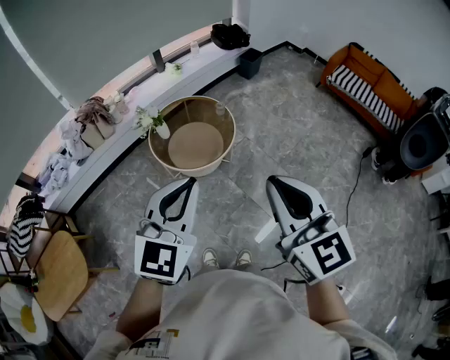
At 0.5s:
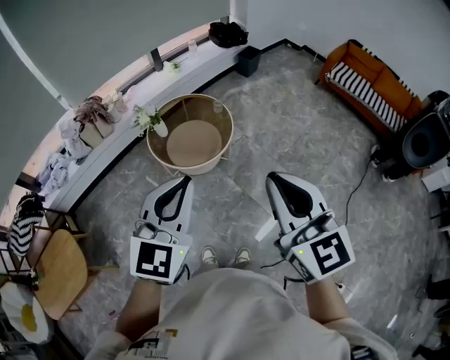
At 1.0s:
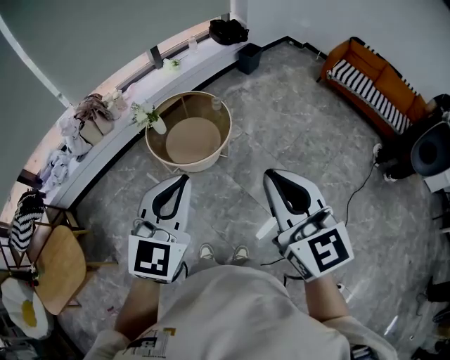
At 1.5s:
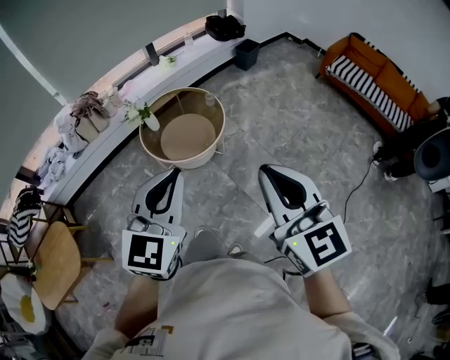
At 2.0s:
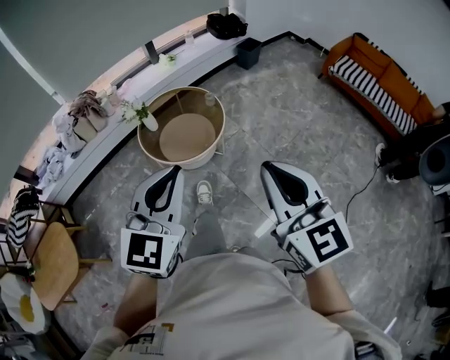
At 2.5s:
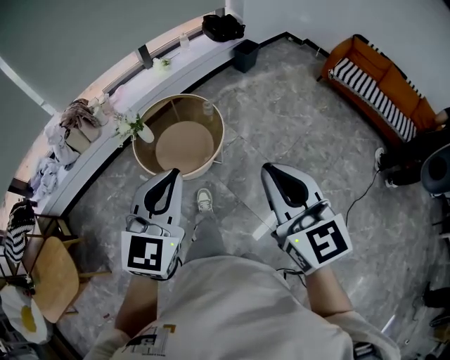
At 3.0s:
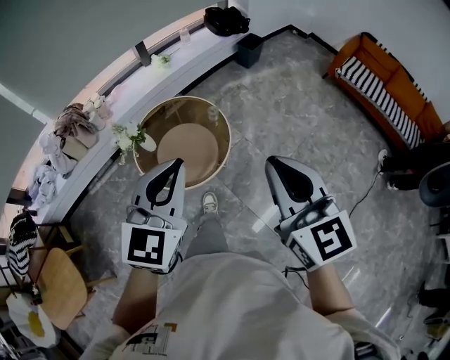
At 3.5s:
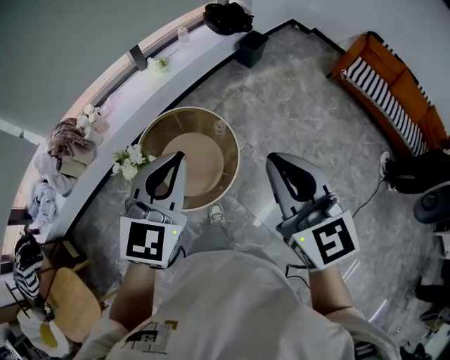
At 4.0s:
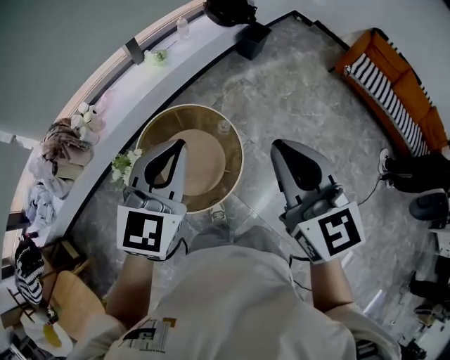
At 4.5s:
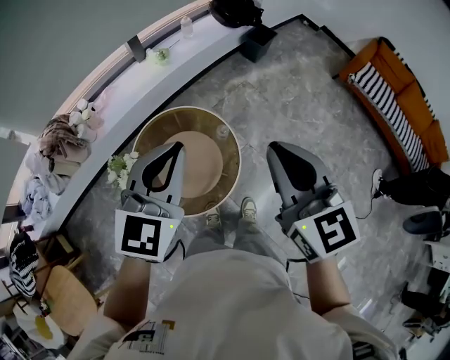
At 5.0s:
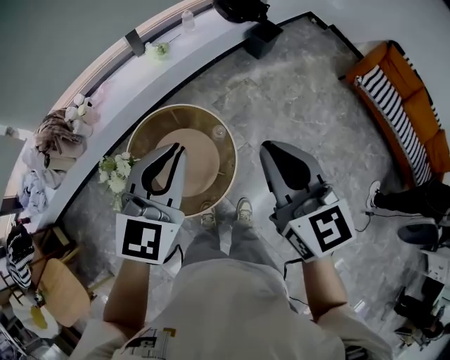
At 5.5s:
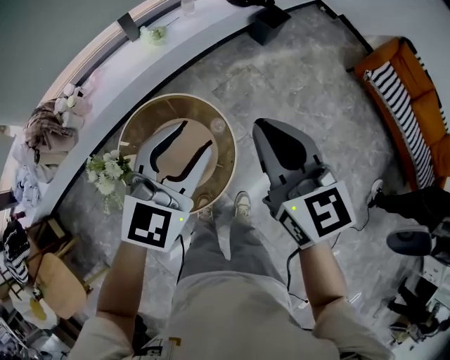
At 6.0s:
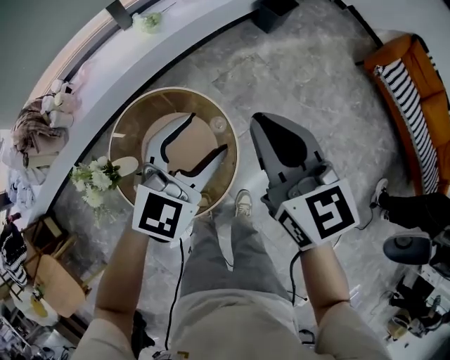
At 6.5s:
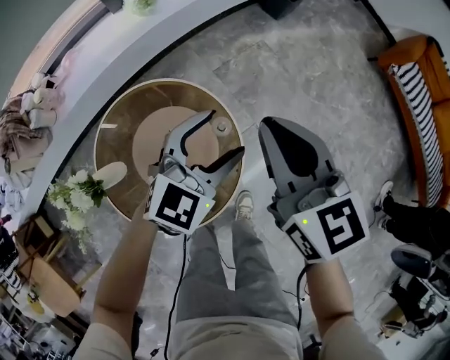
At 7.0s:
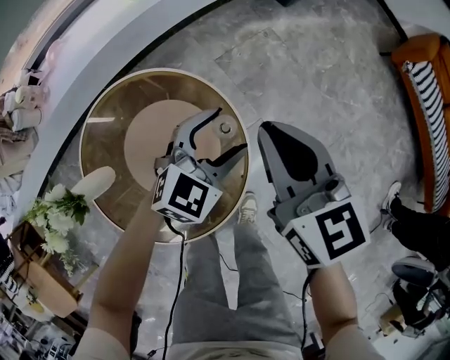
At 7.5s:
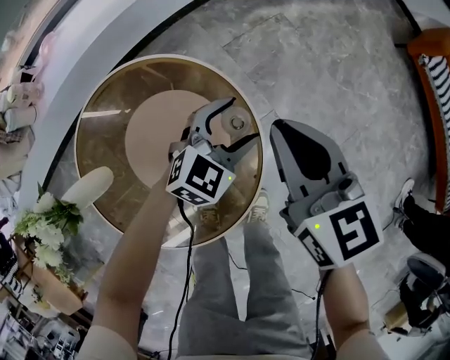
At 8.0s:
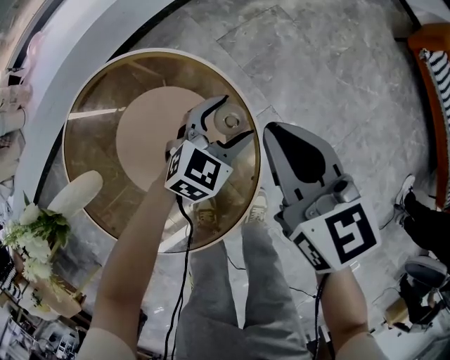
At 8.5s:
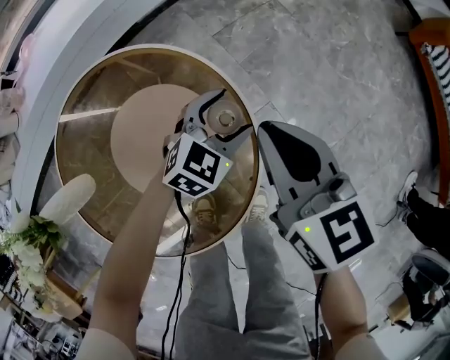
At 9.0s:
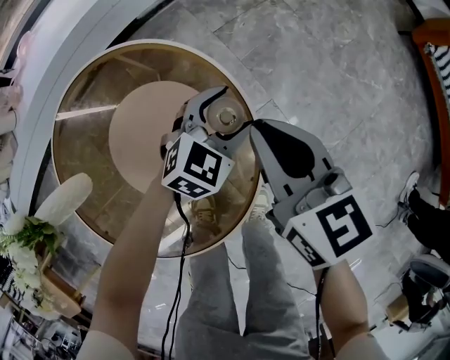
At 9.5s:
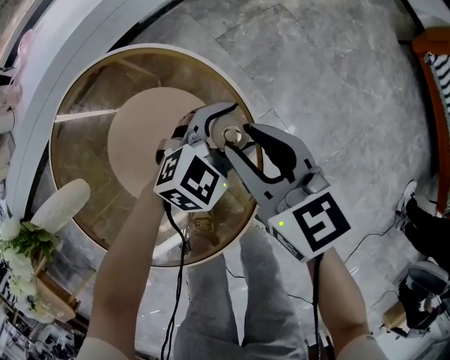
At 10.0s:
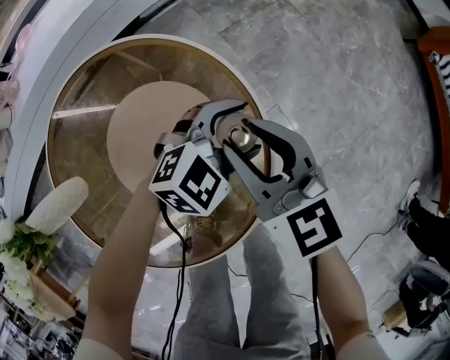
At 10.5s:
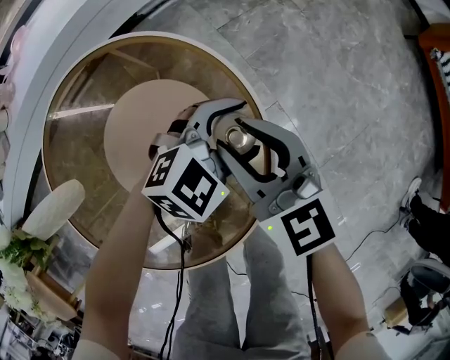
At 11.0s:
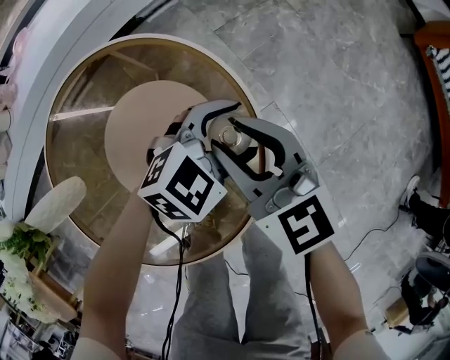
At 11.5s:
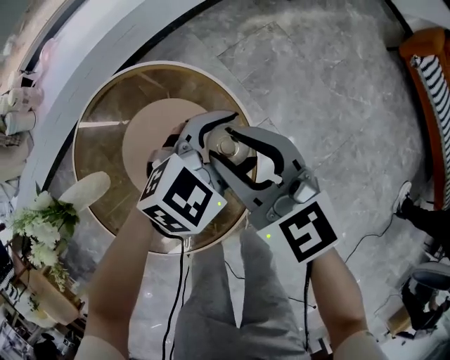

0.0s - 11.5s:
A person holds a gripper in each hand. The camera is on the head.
0.0s - 2.0s: The left gripper is displaced to the right by some 10 cm; the right gripper moves to the right and downward, approximately 10 cm.
2.0s - 4.0s: The pair of grippers is taken forward, roughly 50 cm.
4.0s - 6.0s: The right gripper travels forward and downward by roughly 30 cm. The left gripper shifts roughly 30 cm downward, forward and to the right, and opens its fingers.
6.0s - 7.5s: The grippers both shift downward by some 35 cm.
7.5s - 9.5s: The left gripper goes some 10 cm downward; the right gripper shifts roughly 15 cm downward, and opens its fingers.
9.5s - 11.5s: Both grippers travel together upward, some 15 cm.

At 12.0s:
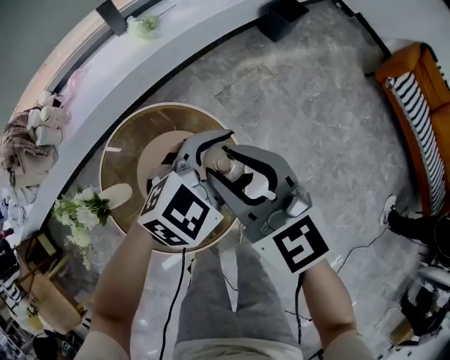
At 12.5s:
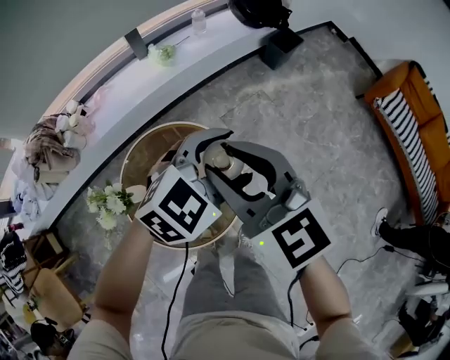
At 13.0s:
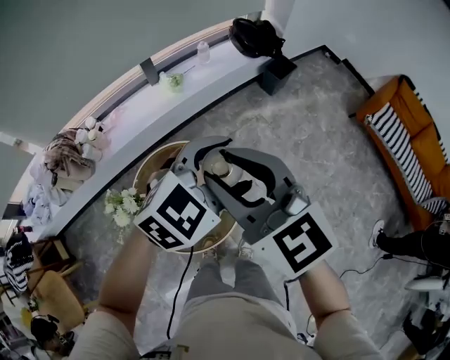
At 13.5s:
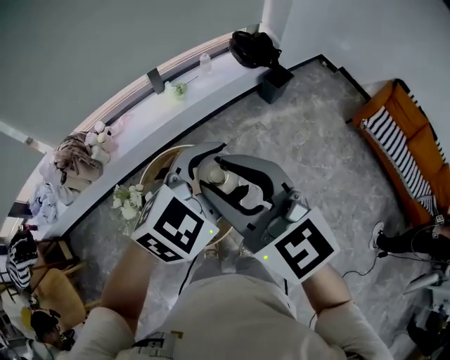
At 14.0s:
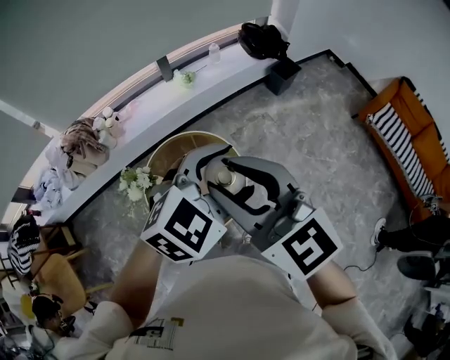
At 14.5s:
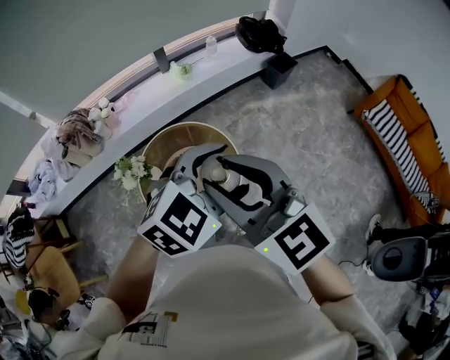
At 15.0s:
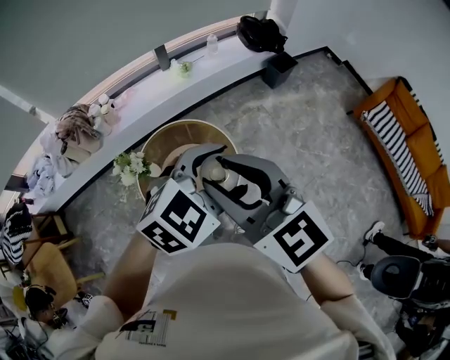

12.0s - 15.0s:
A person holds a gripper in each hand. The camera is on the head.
12.0s - 13.5s: Both grippers travel together upward, approximately 40 cm.
13.5s - 15.0s: The grippers both shift backward by approximately 10 cm.

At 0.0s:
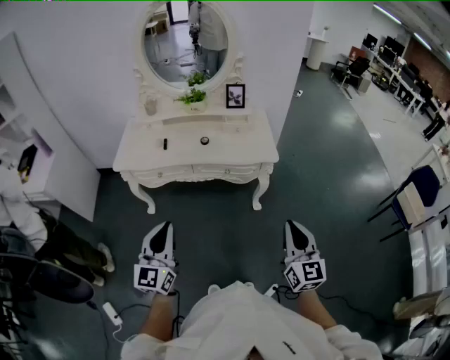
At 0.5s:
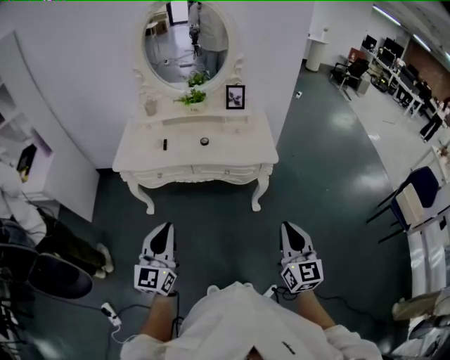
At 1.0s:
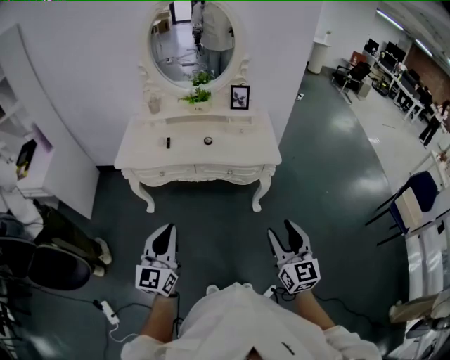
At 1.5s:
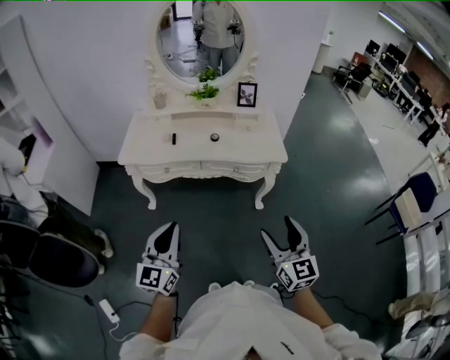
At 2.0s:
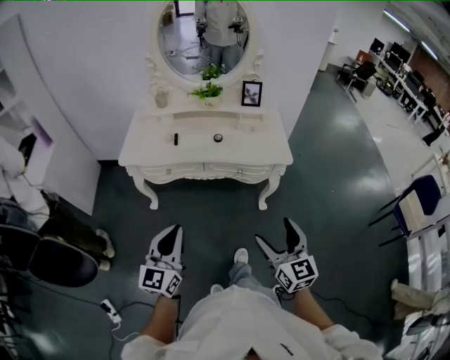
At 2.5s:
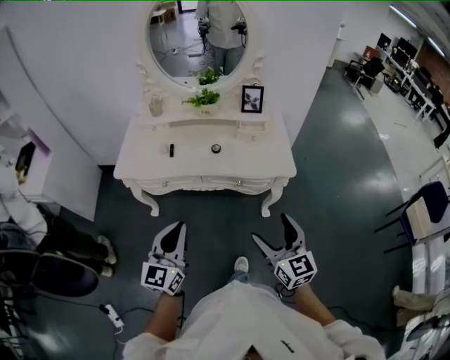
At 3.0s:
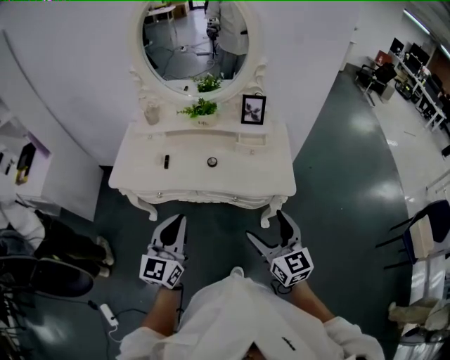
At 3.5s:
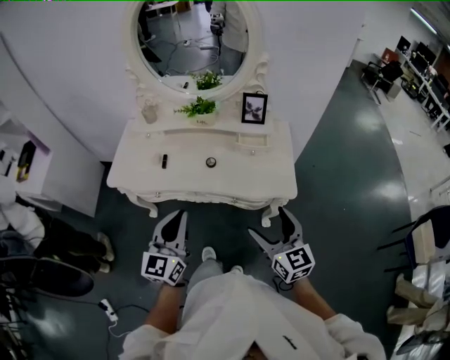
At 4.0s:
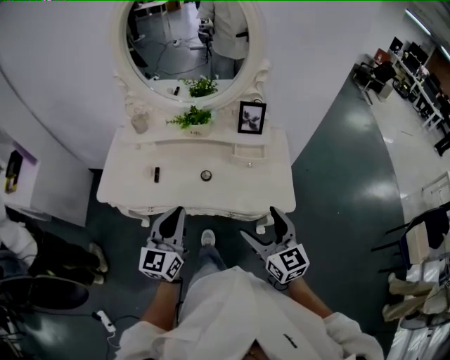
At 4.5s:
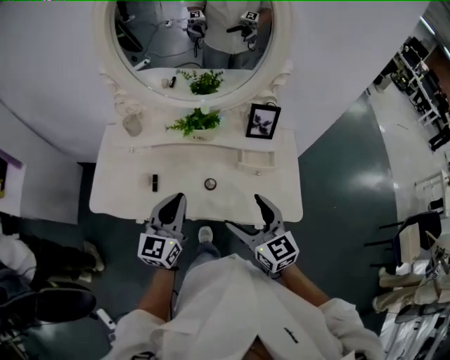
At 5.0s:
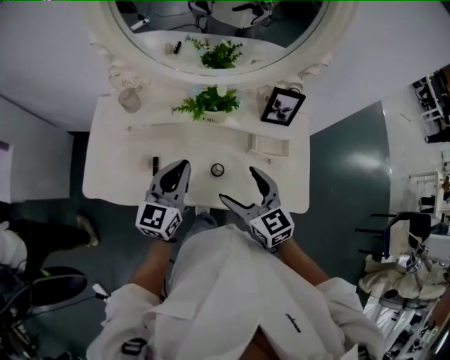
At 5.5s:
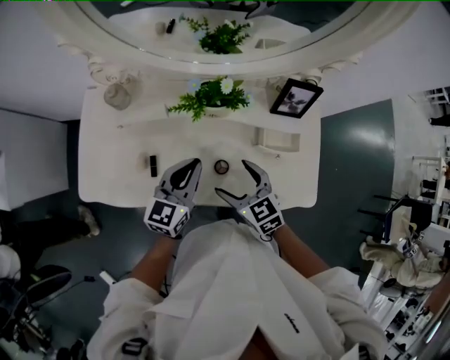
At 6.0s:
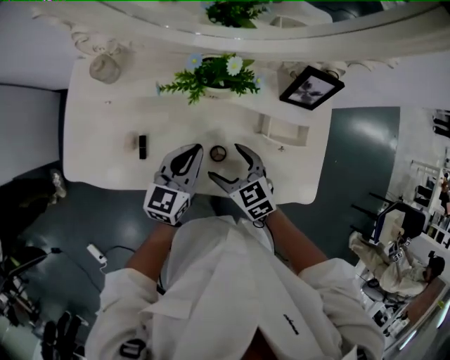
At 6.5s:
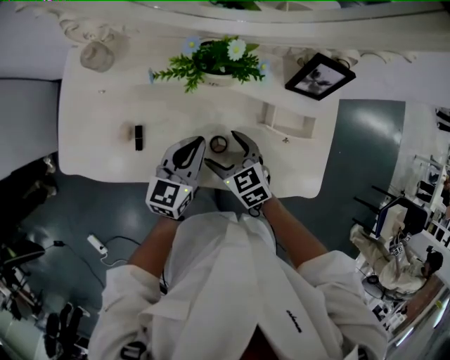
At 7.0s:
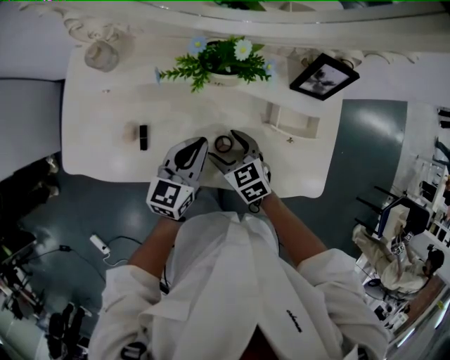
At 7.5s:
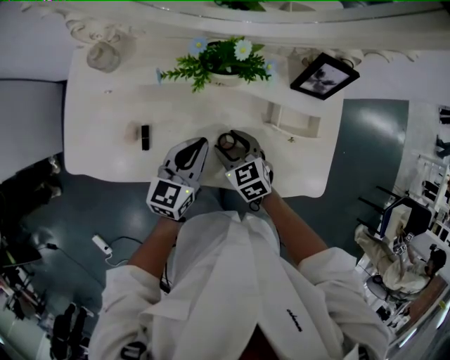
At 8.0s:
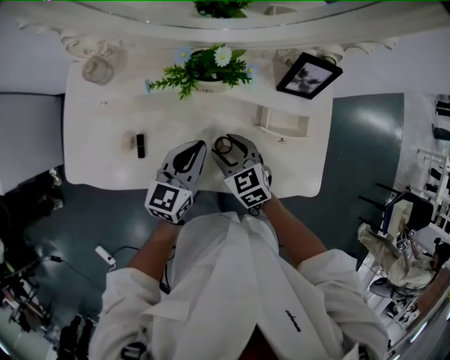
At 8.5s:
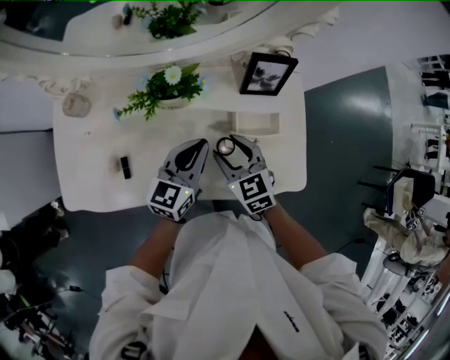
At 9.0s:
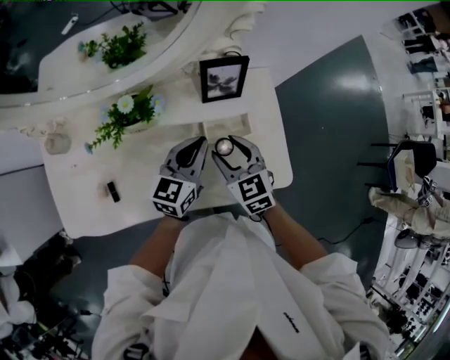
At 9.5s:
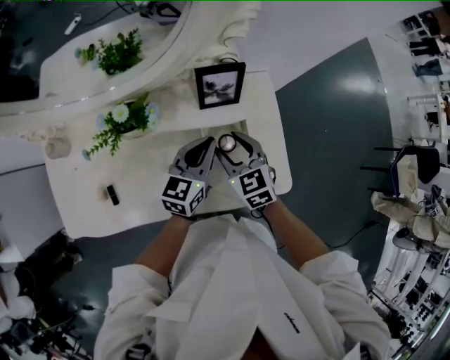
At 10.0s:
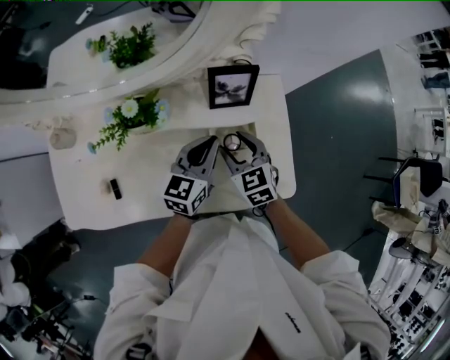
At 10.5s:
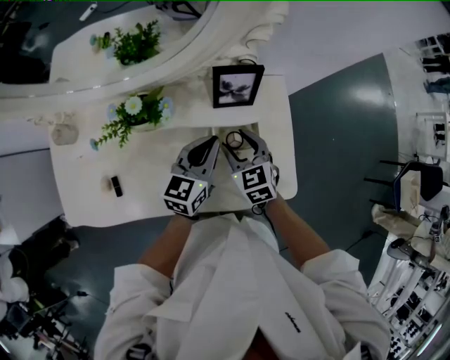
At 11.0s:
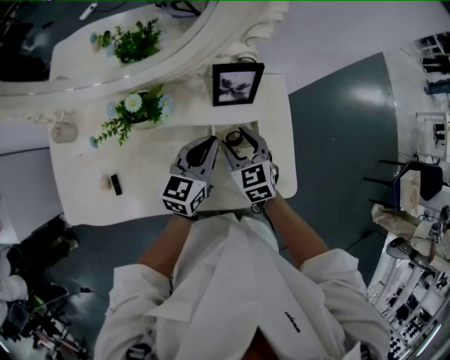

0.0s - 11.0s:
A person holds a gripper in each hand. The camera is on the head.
0.0s - 2.0s: The left gripper heads to the left, covering some 5 cm. The right gripper is displaced to the left by roughly 15 cm, and opens up.
2.0s - 3.5s: The left gripper shifts some 30 cm forward and to the right. The right gripper travels forward by some 25 cm.
3.5s - 5.5s: The left gripper travels forward and downward by some 40 cm, and changes its angle by roughly 20 degrees; the right gripper shifts some 40 cm forward, downward and to the left, and changes its angle by some 30 degrees.
5.5s - 7.5s: The left gripper is displaced downward by approximately 10 cm, while the right gripper is displaced downward by about 10 cm, and closes.
7.5s - 9.0s: The left gripper shifts roughly 20 cm to the right; the right gripper is displaced to the right and upward by roughly 20 cm, and rotates roughly 30 degrees.
9.0s - 11.0s: The right gripper moves roughly 5 cm.

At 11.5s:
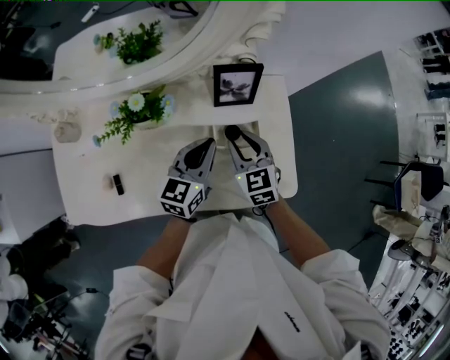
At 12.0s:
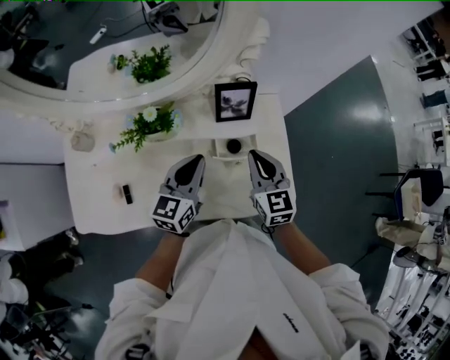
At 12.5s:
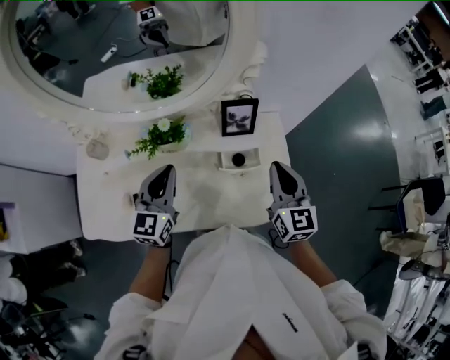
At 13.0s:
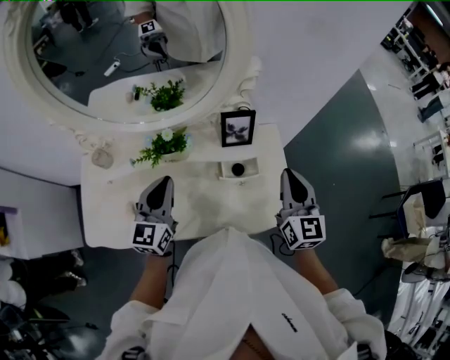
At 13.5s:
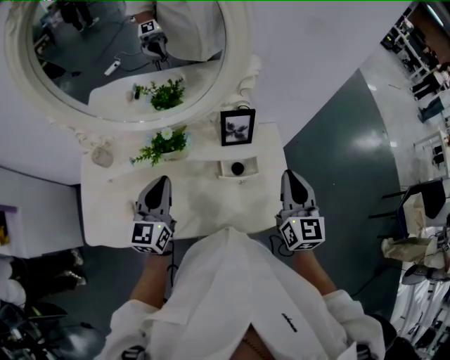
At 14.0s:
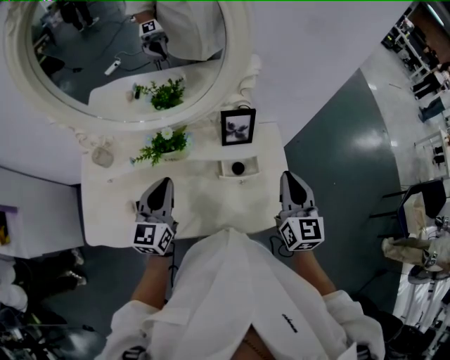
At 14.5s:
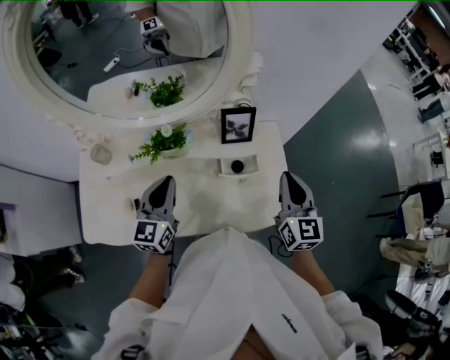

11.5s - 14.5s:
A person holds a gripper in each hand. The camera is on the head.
11.5s - 13.0s: The left gripper travels to the left, upward and backward by some 20 cm, and rotates approximately 20 degrees. Meanwhile the right gripper goes approximately 25 cm upward and to the right, and changes its angle by roughly 30 degrees.
13.0s - 14.5s: The grippers stay close to where they were, moving slightly.
